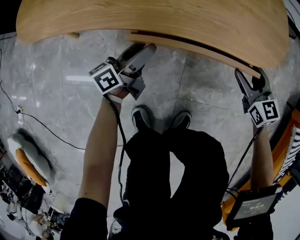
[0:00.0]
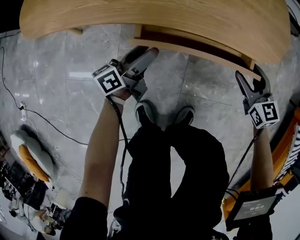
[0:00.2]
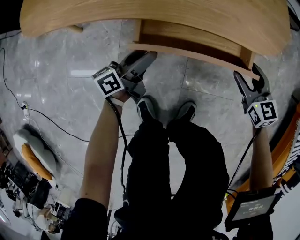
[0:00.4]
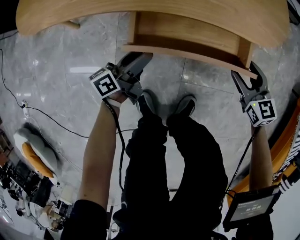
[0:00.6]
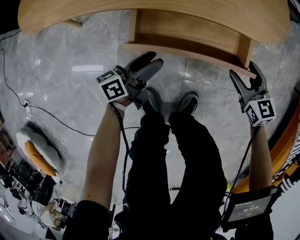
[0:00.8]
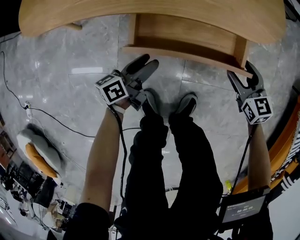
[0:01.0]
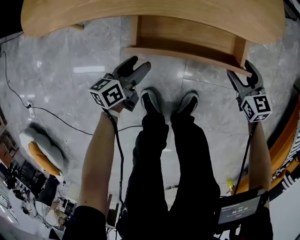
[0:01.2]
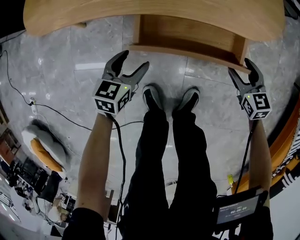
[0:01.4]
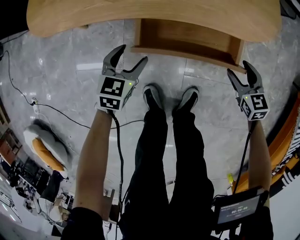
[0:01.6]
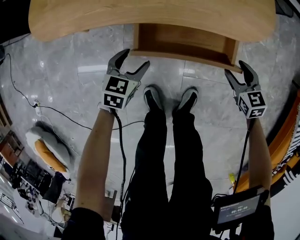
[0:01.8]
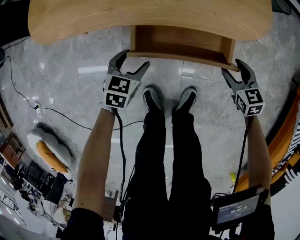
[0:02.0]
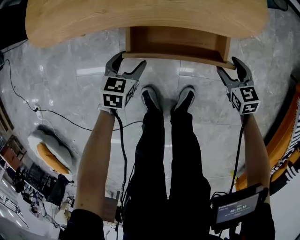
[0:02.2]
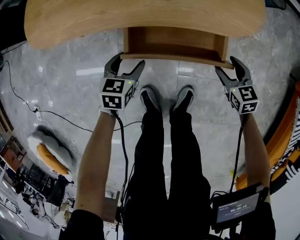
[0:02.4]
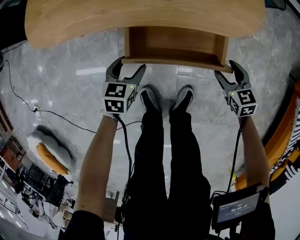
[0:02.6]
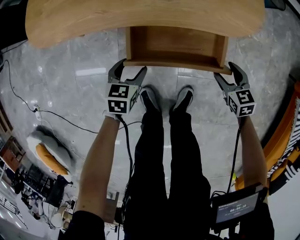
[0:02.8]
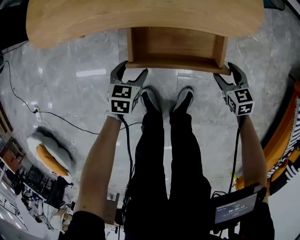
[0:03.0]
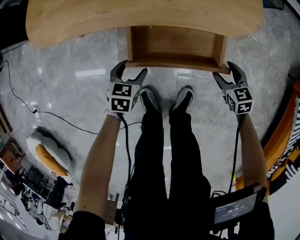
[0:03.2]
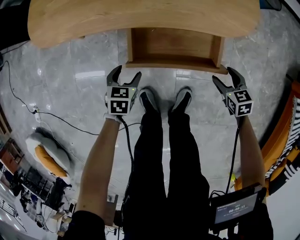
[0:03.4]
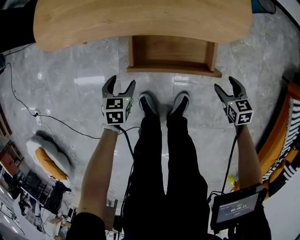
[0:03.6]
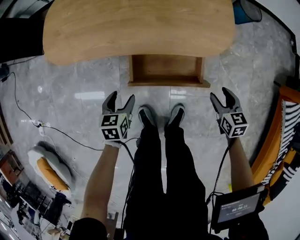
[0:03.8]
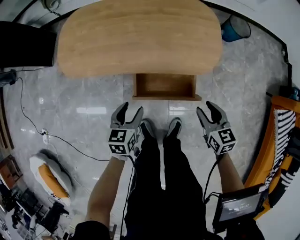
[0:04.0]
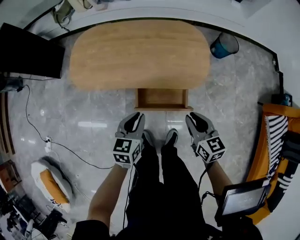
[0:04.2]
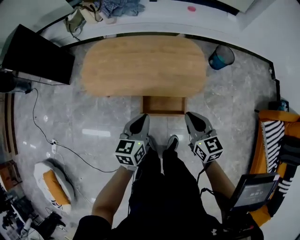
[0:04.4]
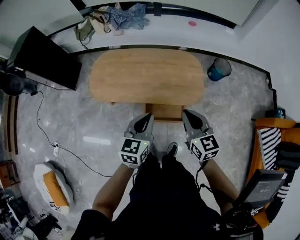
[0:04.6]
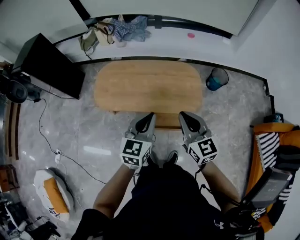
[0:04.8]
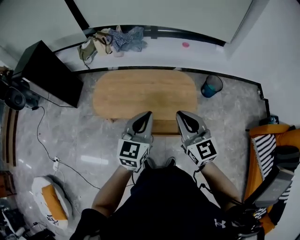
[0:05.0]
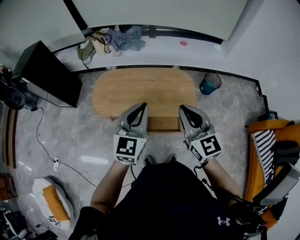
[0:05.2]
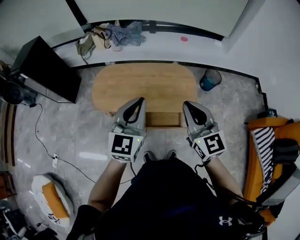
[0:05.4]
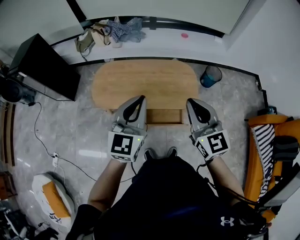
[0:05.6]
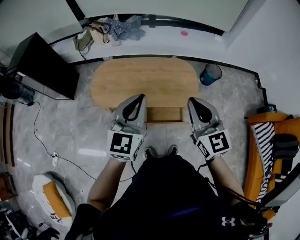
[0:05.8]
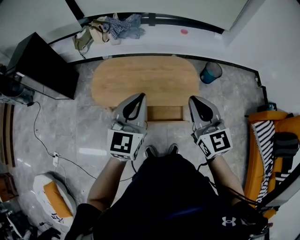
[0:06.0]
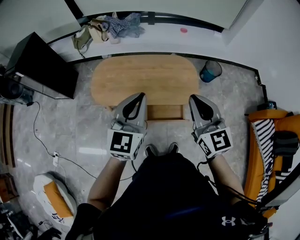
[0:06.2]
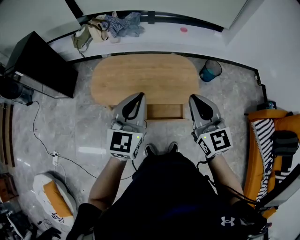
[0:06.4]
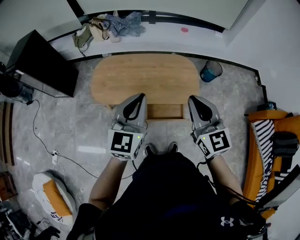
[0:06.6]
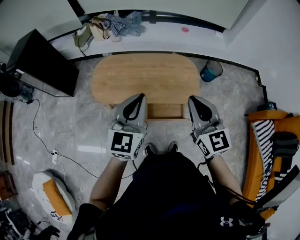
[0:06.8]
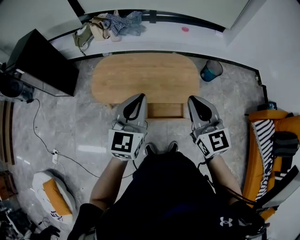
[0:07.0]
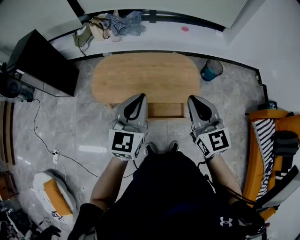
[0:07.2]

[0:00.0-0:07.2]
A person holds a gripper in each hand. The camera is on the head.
0.0 to 1.4 s: Both grippers move backward, roughly 10 cm. The left gripper tilts its fingers about 40 degrees downward.
1.4 to 2.8 s: The grippers move only a little.
2.8 to 4.4 s: The two grippers go some 50 cm upward. The right gripper swivels some 30 degrees, and closes up. Meanwhile the left gripper turns by some 30 degrees, and closes its fingers.
4.4 to 5.8 s: Both grippers travel together upward, about 25 cm. The right gripper swivels some 30 degrees, while the left gripper rotates roughly 30 degrees.
5.8 to 7.2 s: There are only small adjustments of the grippers.

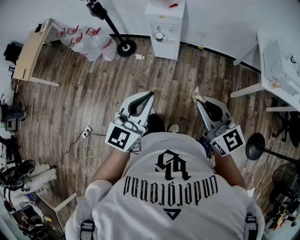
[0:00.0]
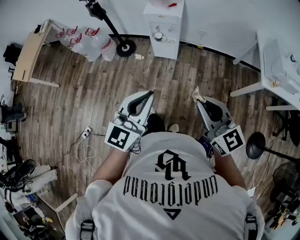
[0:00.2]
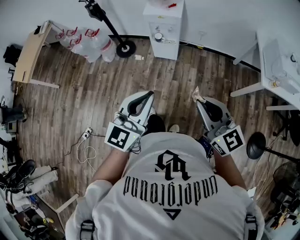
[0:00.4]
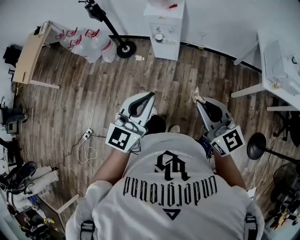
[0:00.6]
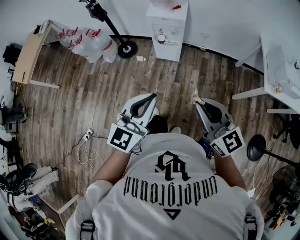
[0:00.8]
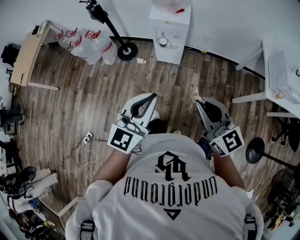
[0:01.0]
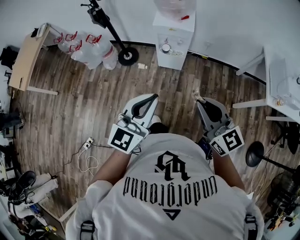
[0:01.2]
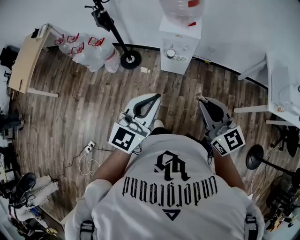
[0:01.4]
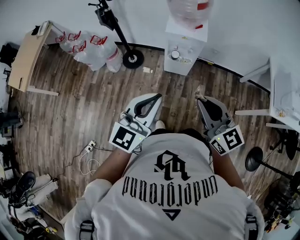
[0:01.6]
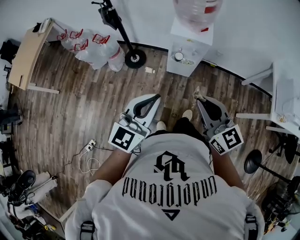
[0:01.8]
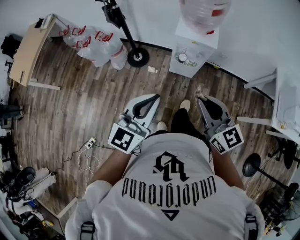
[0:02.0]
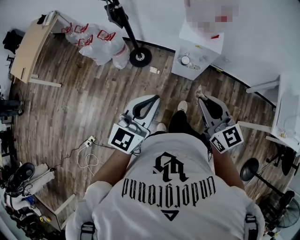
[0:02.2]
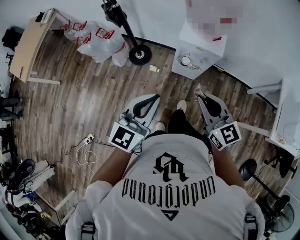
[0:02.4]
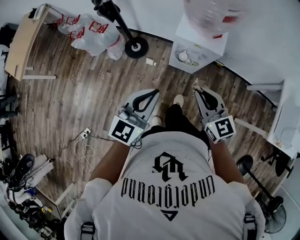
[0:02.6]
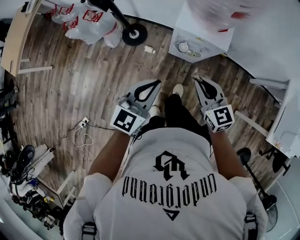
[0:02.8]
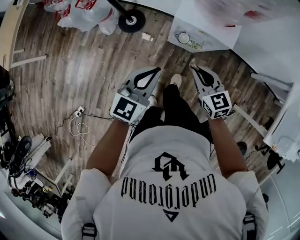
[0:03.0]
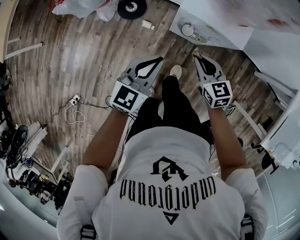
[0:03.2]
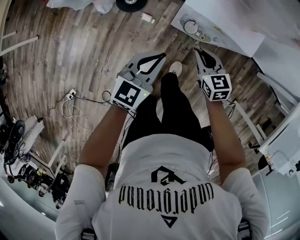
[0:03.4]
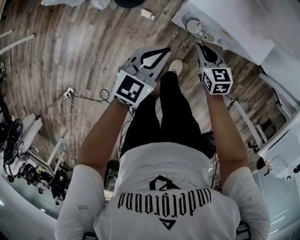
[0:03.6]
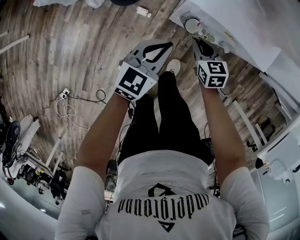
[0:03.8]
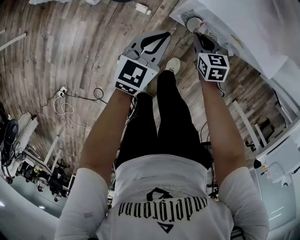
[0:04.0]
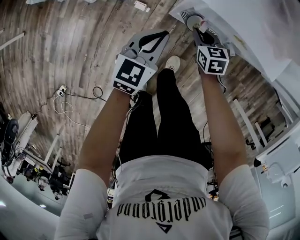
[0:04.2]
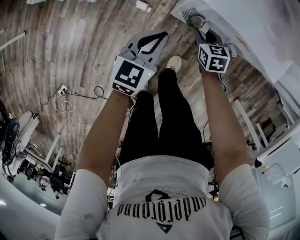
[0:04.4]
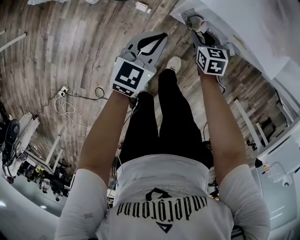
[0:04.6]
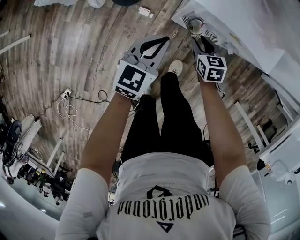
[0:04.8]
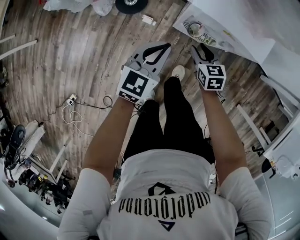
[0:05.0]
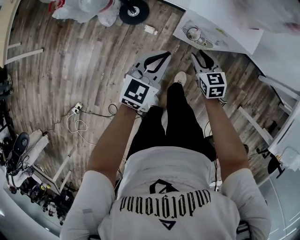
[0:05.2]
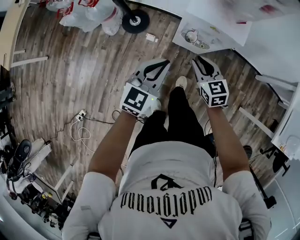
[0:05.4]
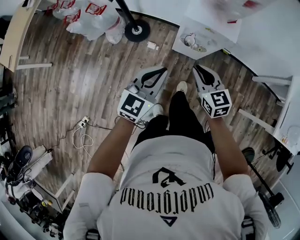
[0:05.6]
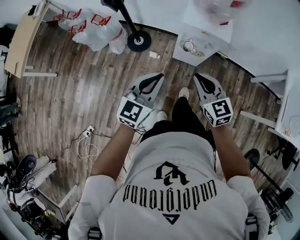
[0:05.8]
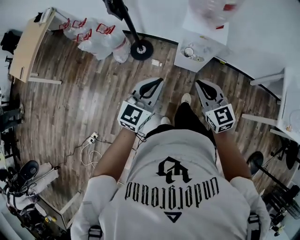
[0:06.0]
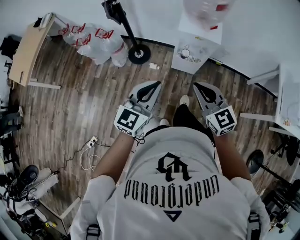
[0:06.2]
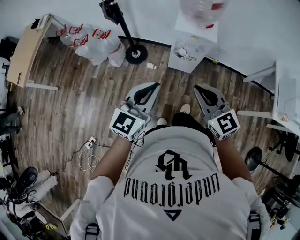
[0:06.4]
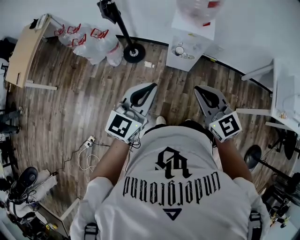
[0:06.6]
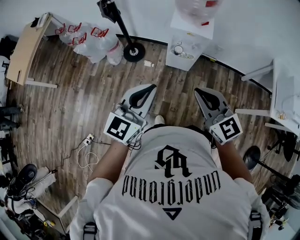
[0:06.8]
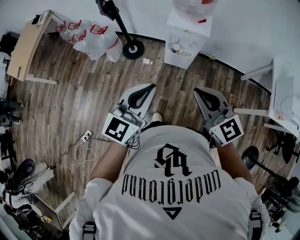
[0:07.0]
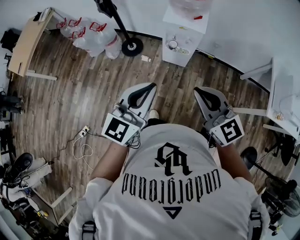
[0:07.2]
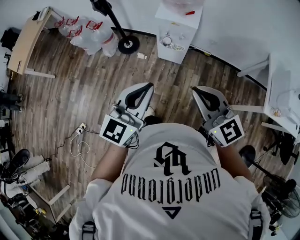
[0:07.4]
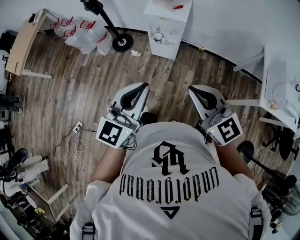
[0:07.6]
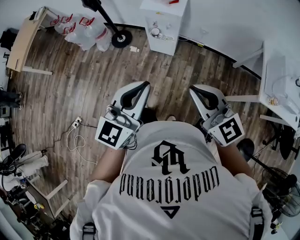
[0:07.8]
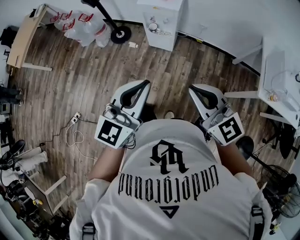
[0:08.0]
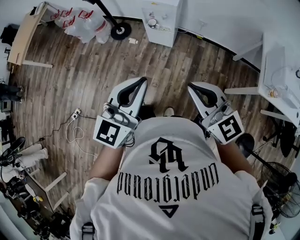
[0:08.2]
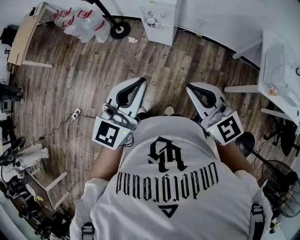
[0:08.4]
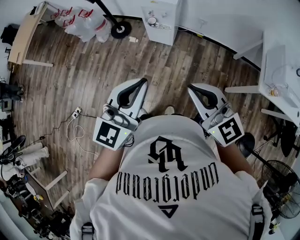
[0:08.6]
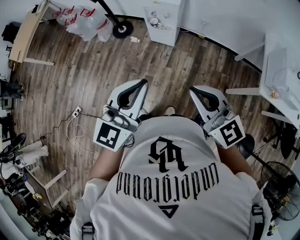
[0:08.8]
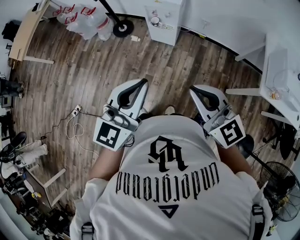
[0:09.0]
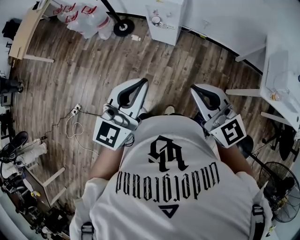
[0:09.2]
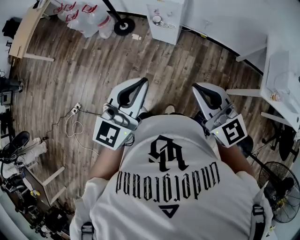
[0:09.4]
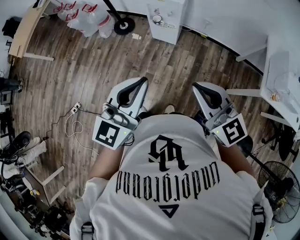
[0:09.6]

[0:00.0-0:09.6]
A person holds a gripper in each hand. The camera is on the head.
0.0 to 1.6 s: Both grippers travel together forward and to the left, some 30 cm.
1.6 to 3.2 s: The two grippers go roughly 50 cm downward and forward. The left gripper changes its angle by roughly 20 degrees. Meanwhile the right gripper turns by about 30 degrees.
3.2 to 4.8 s: The right gripper travels downward by some 25 cm, and opens up. The left gripper moves downward and forward, roughly 20 cm.
4.8 to 6.4 s: The two grippers go about 60 cm upward and backward. The left gripper rotates some 20 degrees. Meanwhile the right gripper points its fingers some 30 degrees further upward, and closes up.
6.4 to 8.0 s: Both grippers travel together to the right and backward, roughly 35 cm.
8.0 to 9.6 s: There are only small adjustments of the grippers.

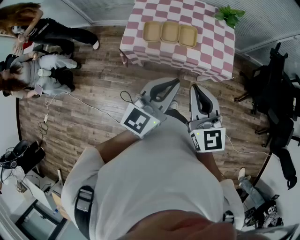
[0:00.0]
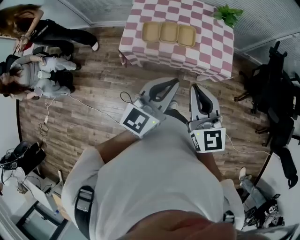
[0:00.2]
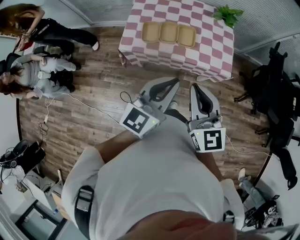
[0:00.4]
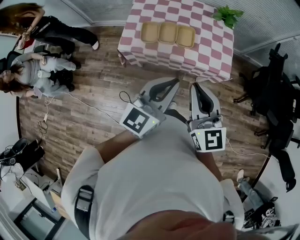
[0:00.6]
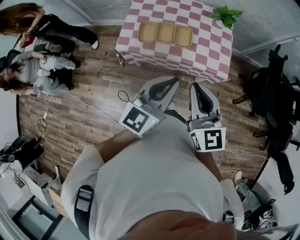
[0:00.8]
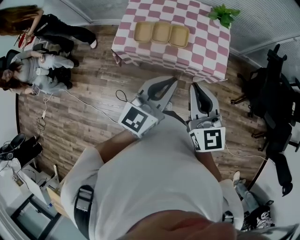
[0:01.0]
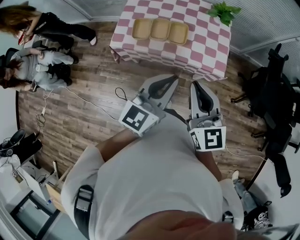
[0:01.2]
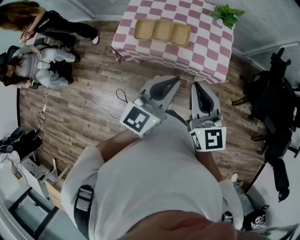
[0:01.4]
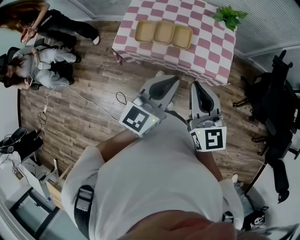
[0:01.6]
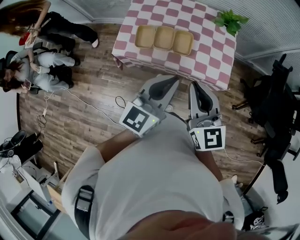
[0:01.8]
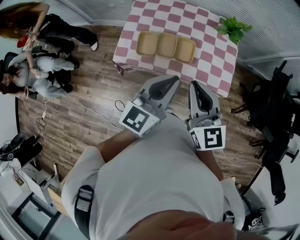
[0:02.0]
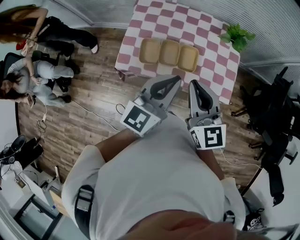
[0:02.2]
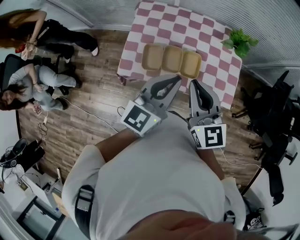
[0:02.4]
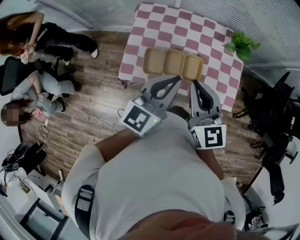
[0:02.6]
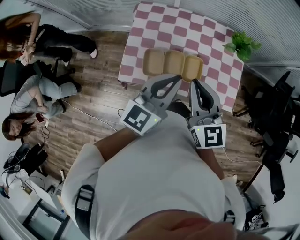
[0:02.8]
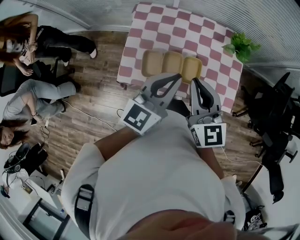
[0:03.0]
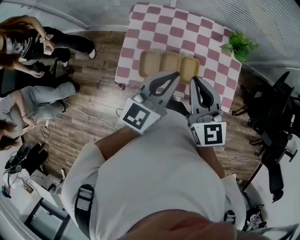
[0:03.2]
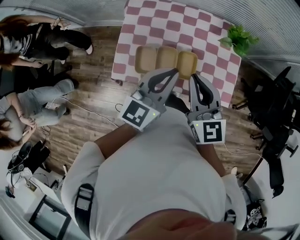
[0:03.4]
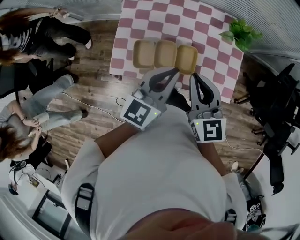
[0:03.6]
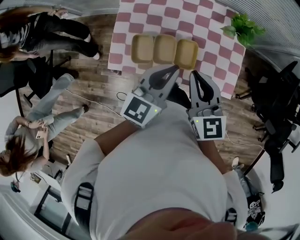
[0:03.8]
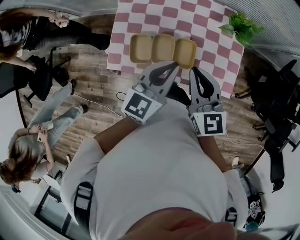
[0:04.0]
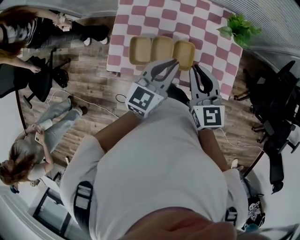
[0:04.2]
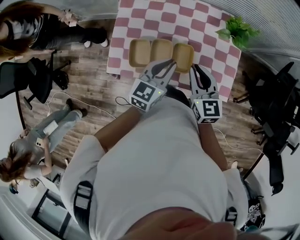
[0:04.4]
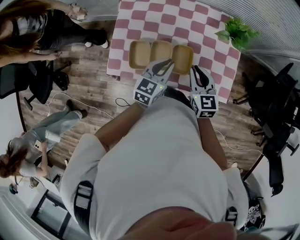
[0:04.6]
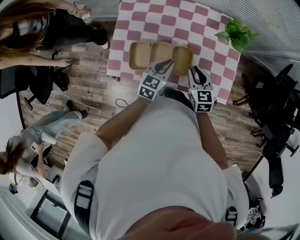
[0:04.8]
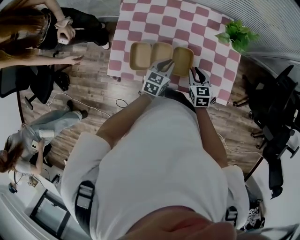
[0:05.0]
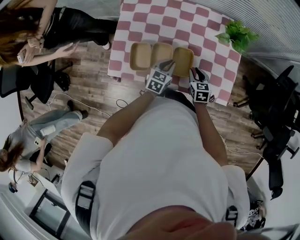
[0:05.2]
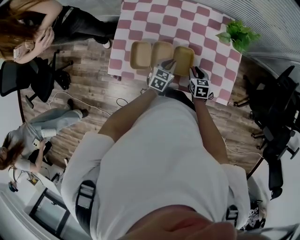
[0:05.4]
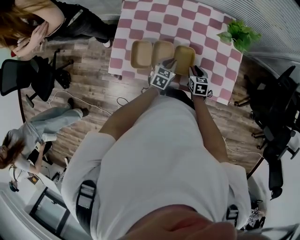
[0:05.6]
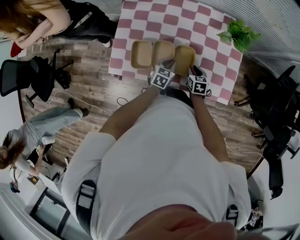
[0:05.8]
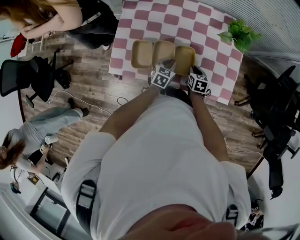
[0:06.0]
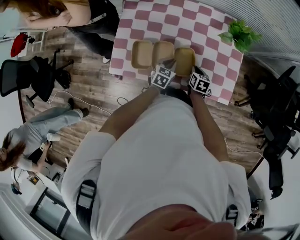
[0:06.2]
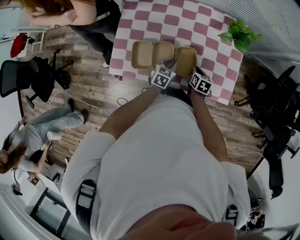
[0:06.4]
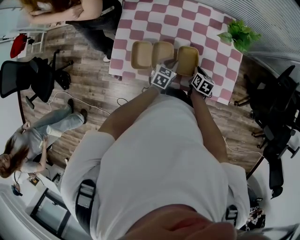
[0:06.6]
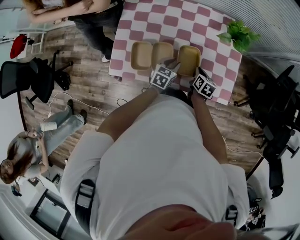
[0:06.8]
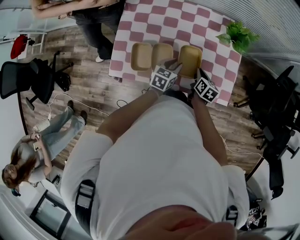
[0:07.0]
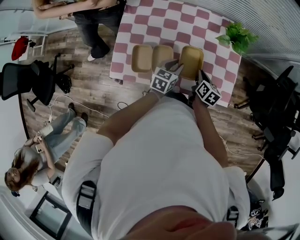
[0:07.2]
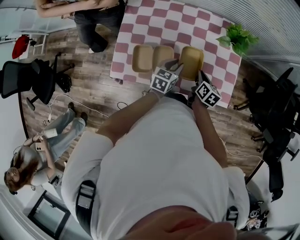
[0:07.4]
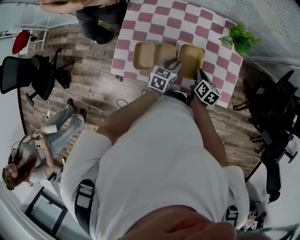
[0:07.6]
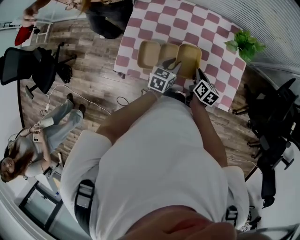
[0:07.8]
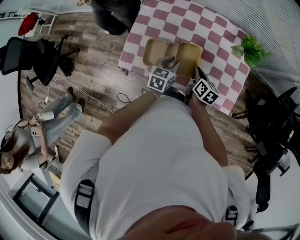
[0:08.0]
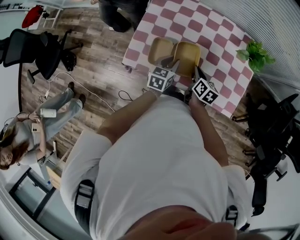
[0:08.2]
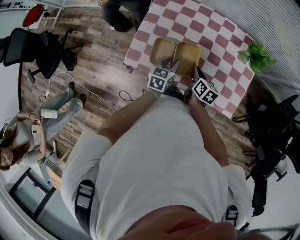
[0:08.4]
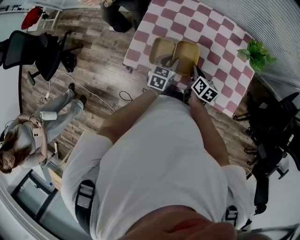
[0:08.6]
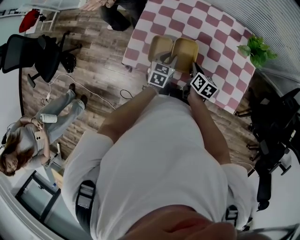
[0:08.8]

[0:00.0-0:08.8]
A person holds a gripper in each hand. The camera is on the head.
0.0 to 1.4 s: The two grippers go roughly 10 cm to the right.
1.4 to 3.0 s: The grippers both shift forward and to the left by some 30 cm.
3.0 to 4.4 s: The right gripper shifts some 15 cm downward and to the right, while the left gripper shifts approximately 15 cm downward.
4.4 to 5.8 s: The two grippers go about 25 cm downward. The right gripper changes its angle by approximately 30 degrees. The left gripper swivels roughly 20 degrees.
5.8 to 7.4 s: Both grippers move upward, about 10 cm. The right gripper swivels some 30 degrees.
7.4 to 8.8 s: Both grippers travel together to the left, some 15 cm.
